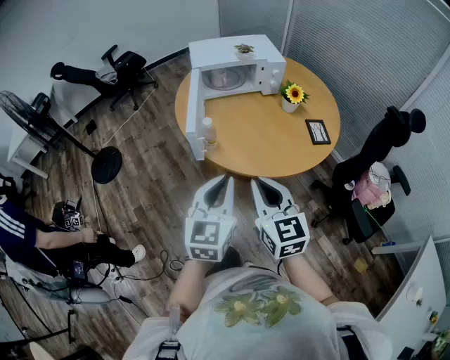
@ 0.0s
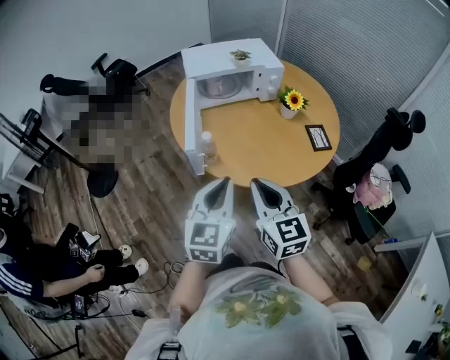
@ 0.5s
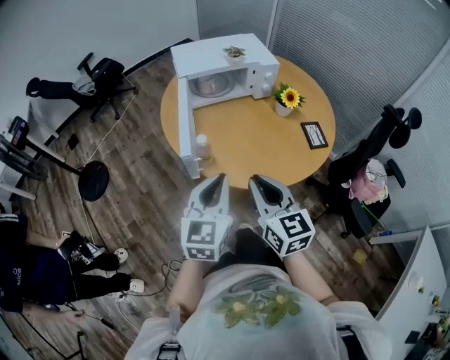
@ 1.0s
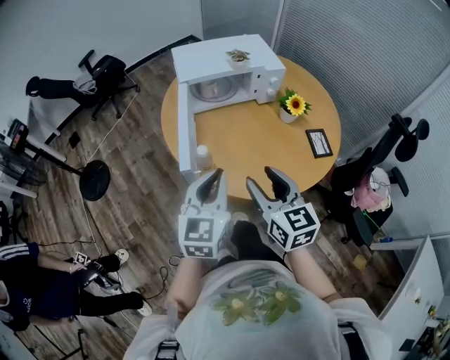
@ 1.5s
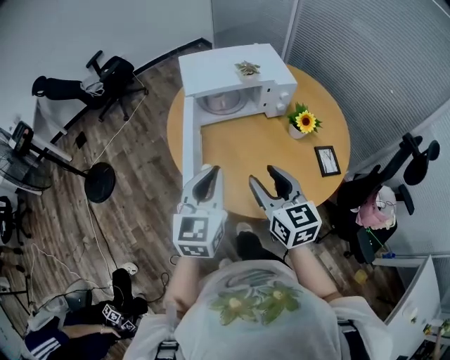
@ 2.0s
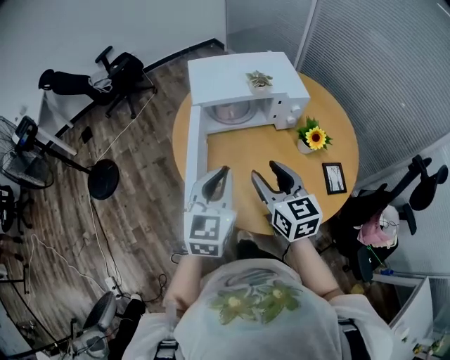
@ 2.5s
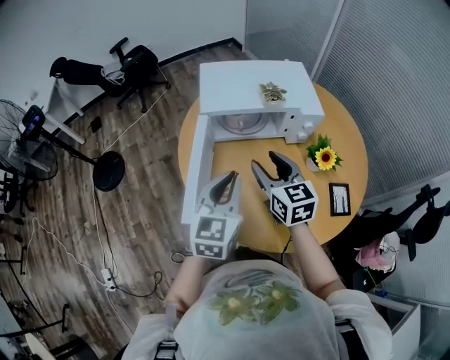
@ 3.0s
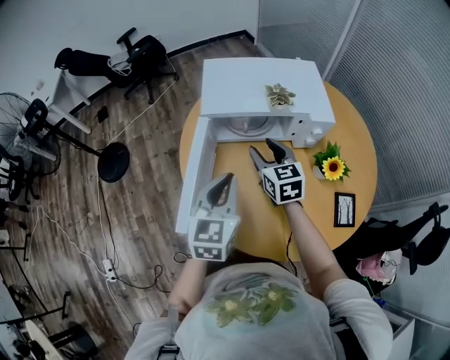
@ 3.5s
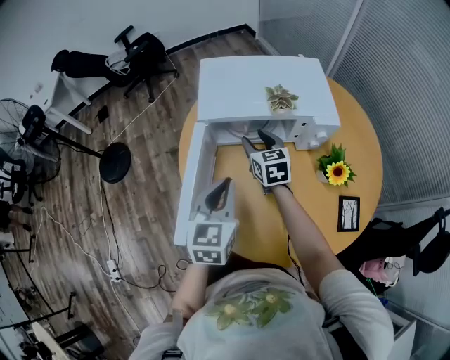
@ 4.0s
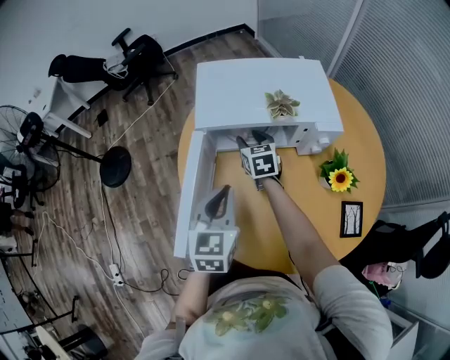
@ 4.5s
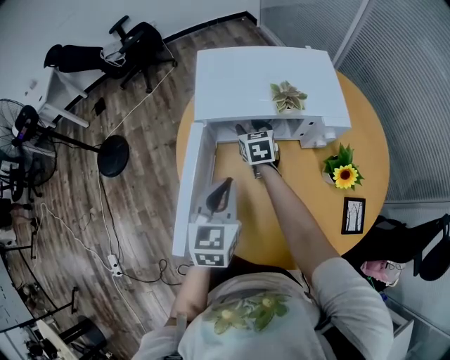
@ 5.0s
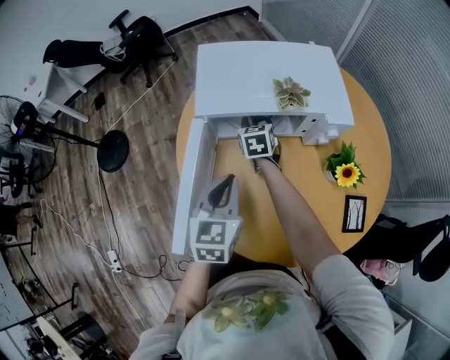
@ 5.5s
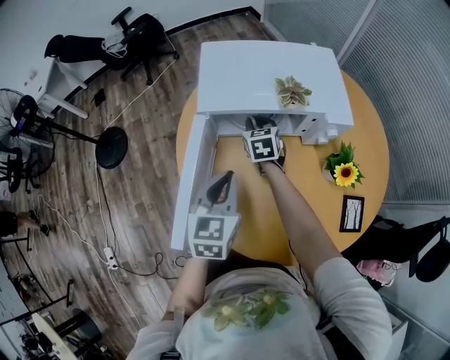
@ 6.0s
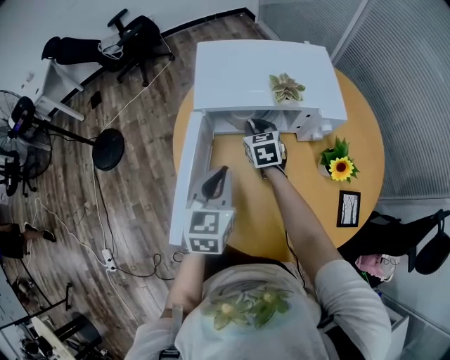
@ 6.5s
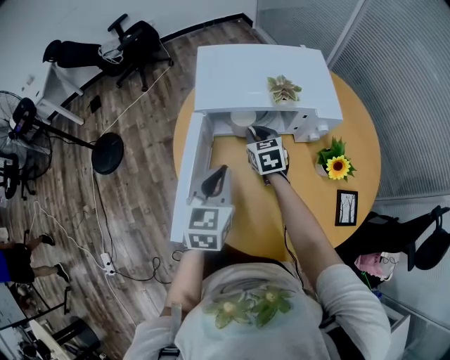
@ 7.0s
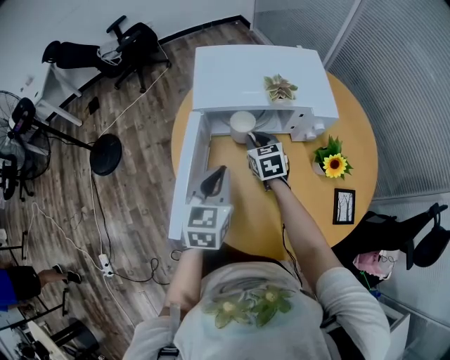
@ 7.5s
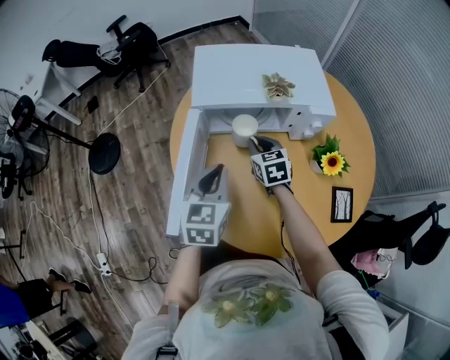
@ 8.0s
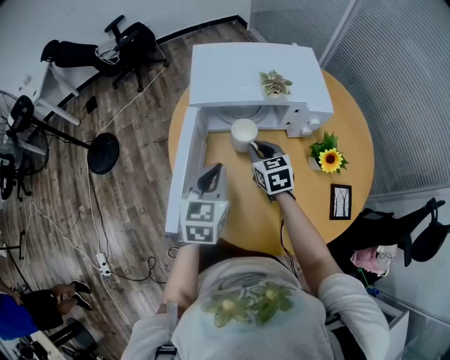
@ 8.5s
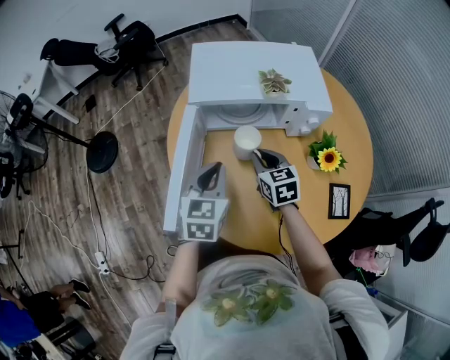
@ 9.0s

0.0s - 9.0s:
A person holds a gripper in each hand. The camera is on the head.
0.0s - 2.0s: Both grippers move forward, about 25 cm. The right gripper opens its fingers.
2.0s - 4.5s: The left gripper travels forward and downward by roughly 20 cm, and rotates some 20 degrees. Meanwhile the right gripper goes some 40 cm forward and downward.
4.5s - 7.0s: The right gripper closes.
7.0s - 9.0s: The right gripper travels backward by roughly 10 cm.

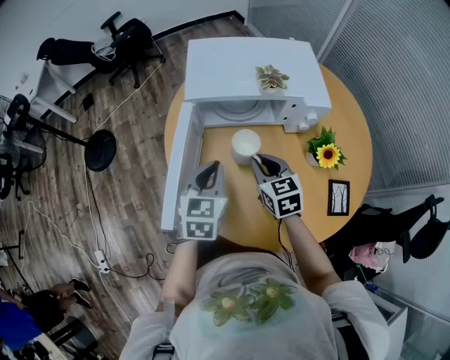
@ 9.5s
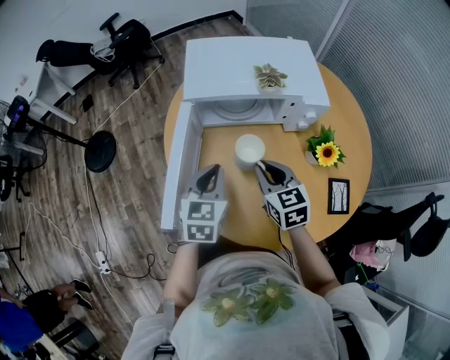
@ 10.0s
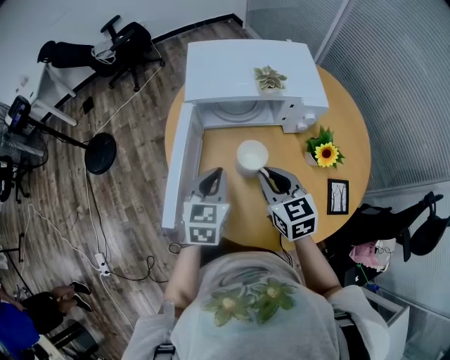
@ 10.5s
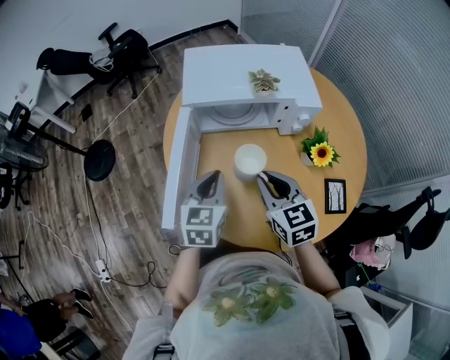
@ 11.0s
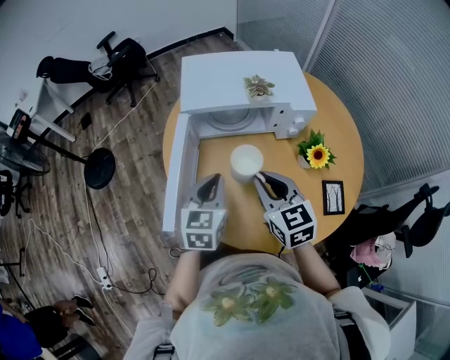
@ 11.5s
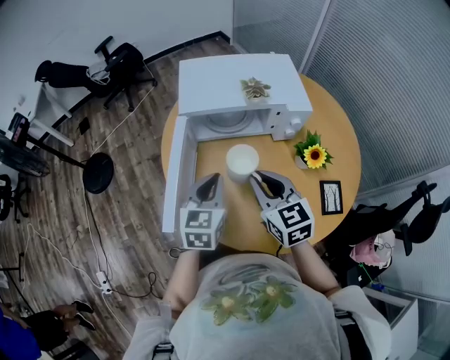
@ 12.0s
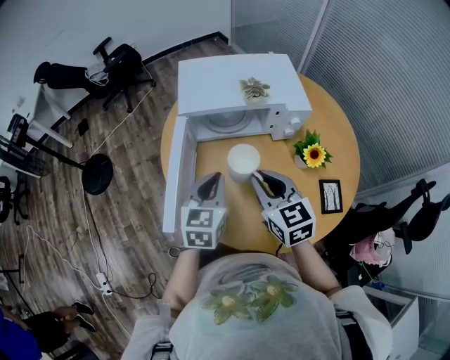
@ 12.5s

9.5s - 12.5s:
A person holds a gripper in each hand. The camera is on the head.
9.5s - 11.0s: The right gripper moves backward and upward, approximately 10 cm.
11.0s - 12.5s: The grippers move only a little.

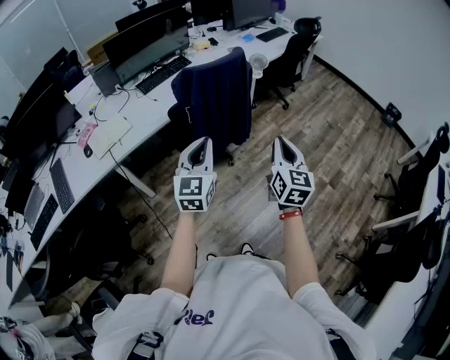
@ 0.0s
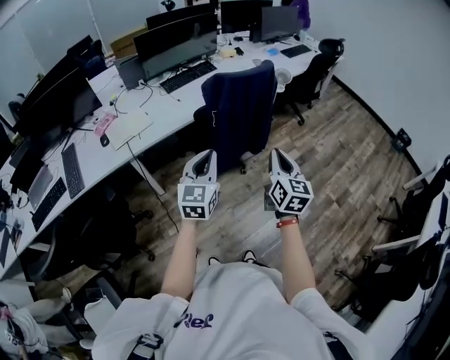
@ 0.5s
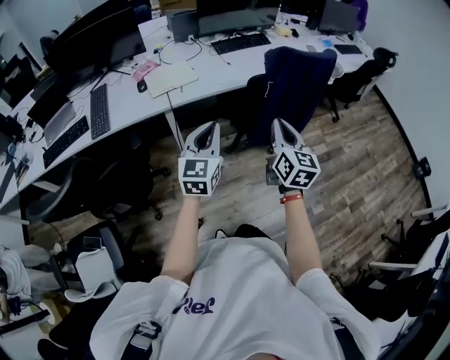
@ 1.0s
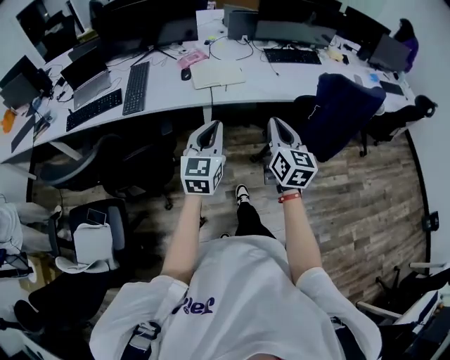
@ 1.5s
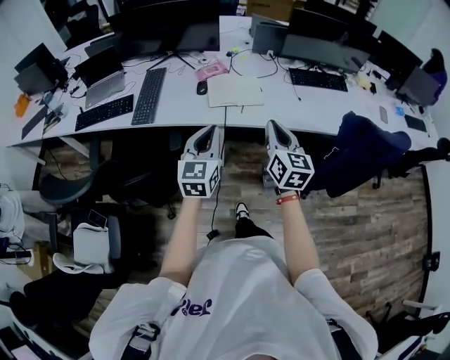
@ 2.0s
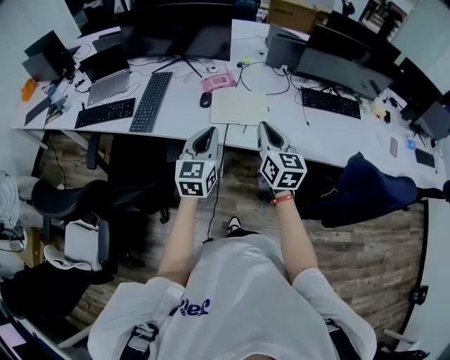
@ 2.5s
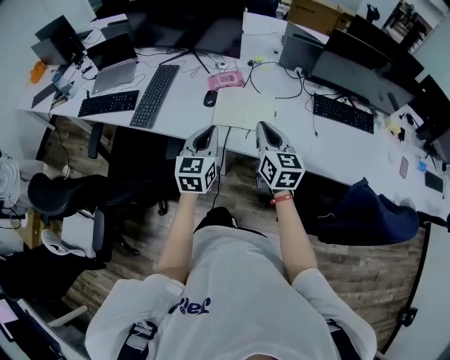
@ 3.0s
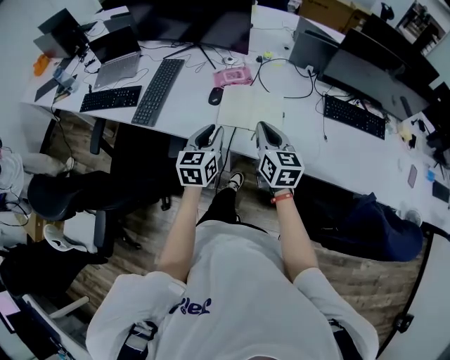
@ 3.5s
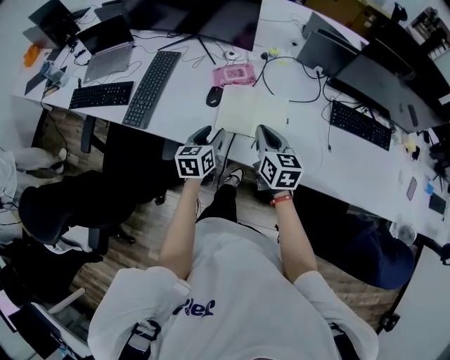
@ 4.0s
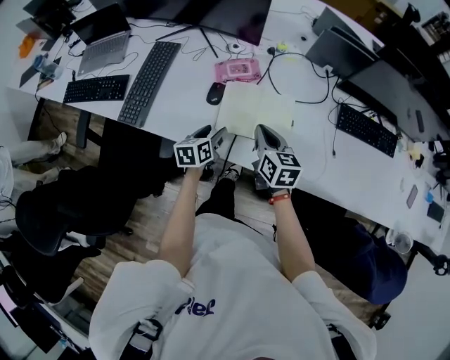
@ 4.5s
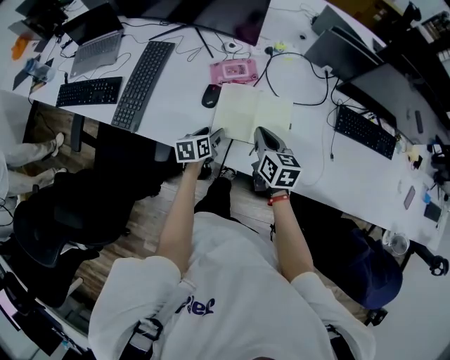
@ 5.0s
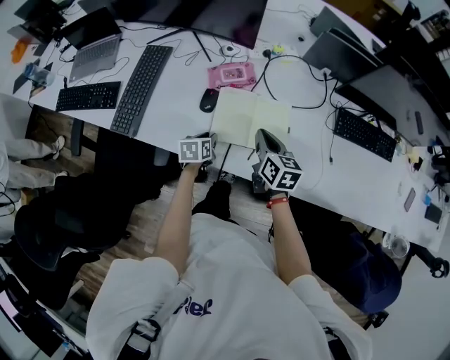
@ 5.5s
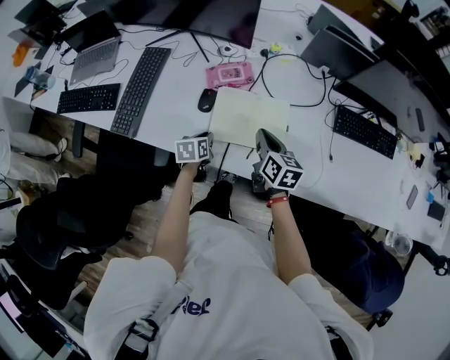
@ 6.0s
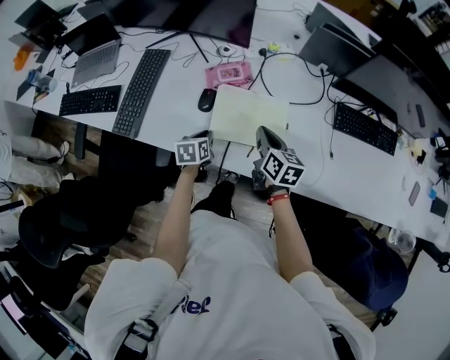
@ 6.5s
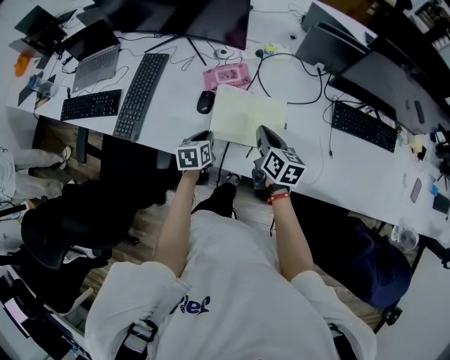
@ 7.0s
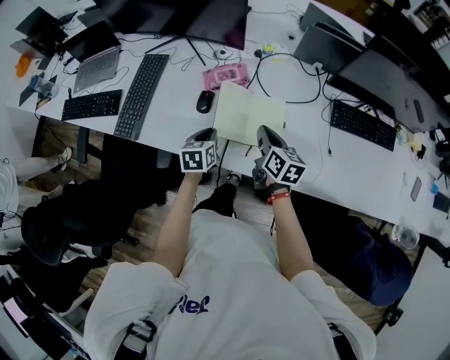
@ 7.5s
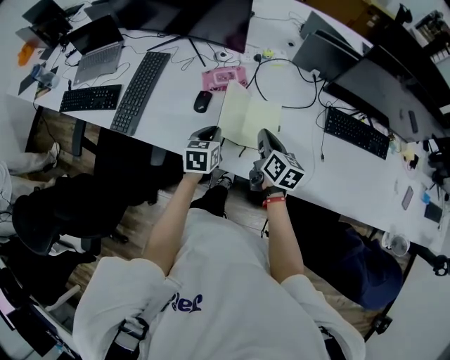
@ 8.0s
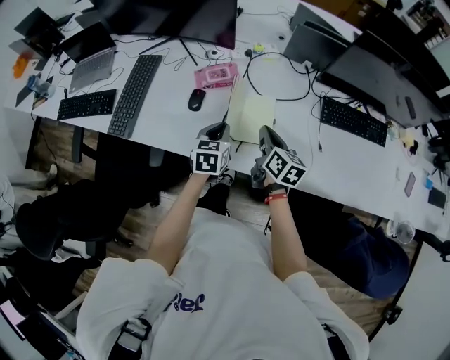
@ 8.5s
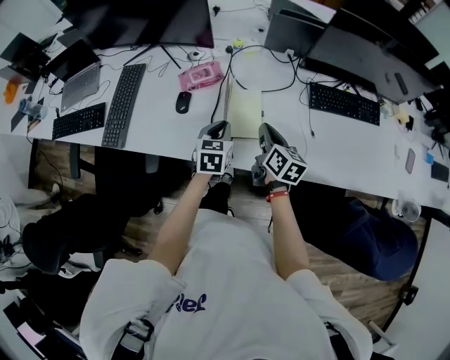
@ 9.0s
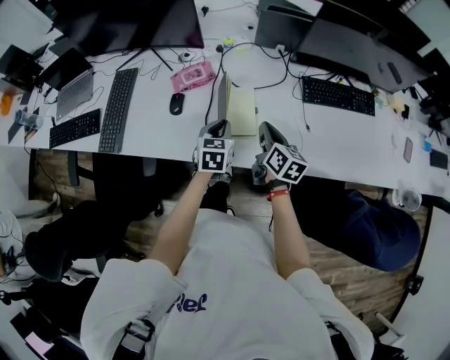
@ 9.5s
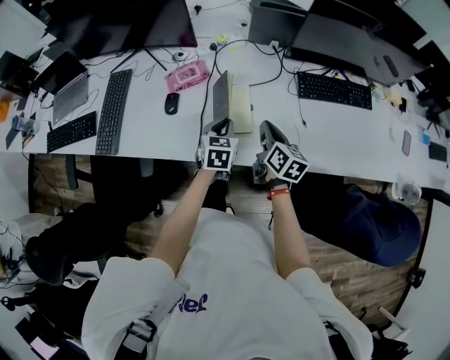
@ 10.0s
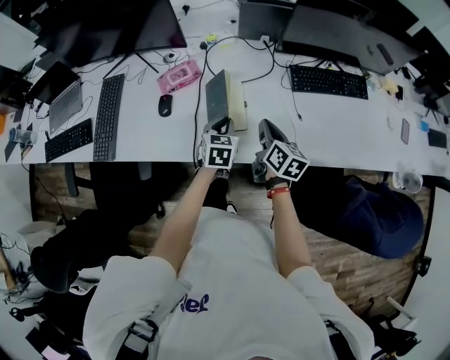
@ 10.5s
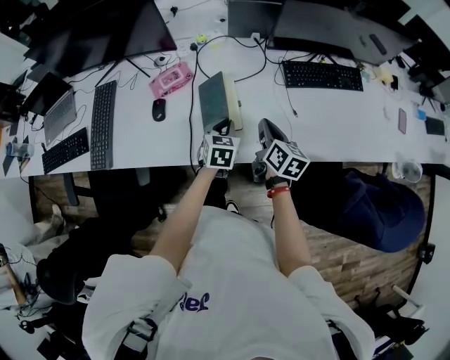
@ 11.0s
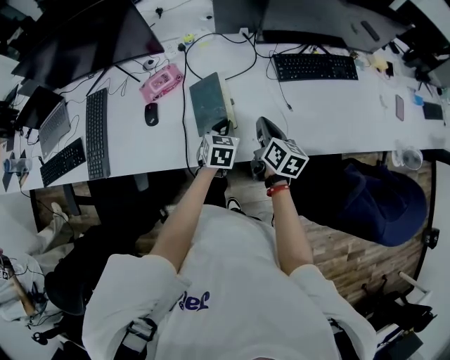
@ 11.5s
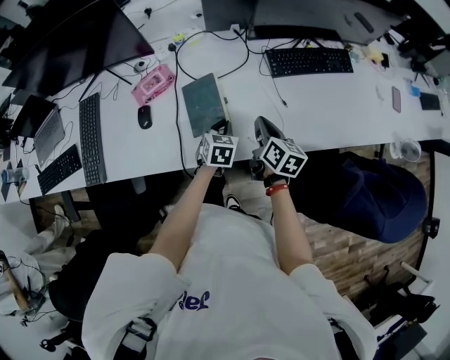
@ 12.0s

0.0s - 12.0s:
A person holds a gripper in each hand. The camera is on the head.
0.0s - 2.0s: Both grippers are carried some 50 cm. The left gripper turns by some 40 degrees. Meanwhile the right gripper turns by approximately 50 degrees.
2.0s - 4.0s: Both grippers move forward and downward, approximately 40 cm. The right gripper changes its angle by about 30 degrees; the left gripper turns by approximately 30 degrees, and opens up.
4.0s - 6.0s: The left gripper goes about 15 cm downward and forward, swivels approximately 20 degrees, and closes its fingers, while the right gripper goes about 10 cm forward and downward.
6.0s - 8.0s: The right gripper ends up approximately 5 cm from where it was; the left gripper is displaced upward and to the right by some 10 cm.
8.0s - 10.0s: The two grippers go roughly 15 cm to the right.
10.0s - 12.0s: The right gripper travels to the right by some 5 cm. The left gripper goes about 10 cm to the right and downward.

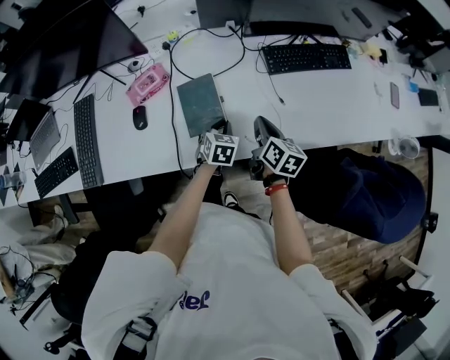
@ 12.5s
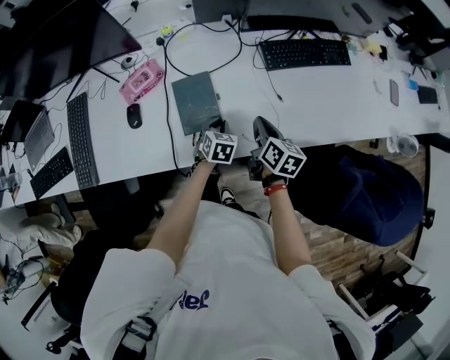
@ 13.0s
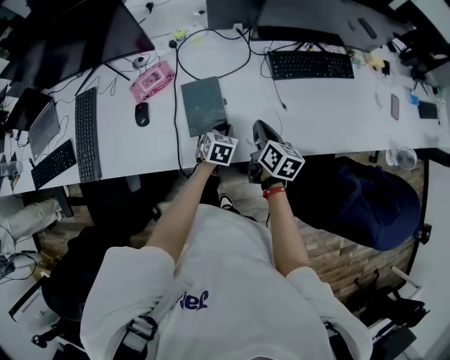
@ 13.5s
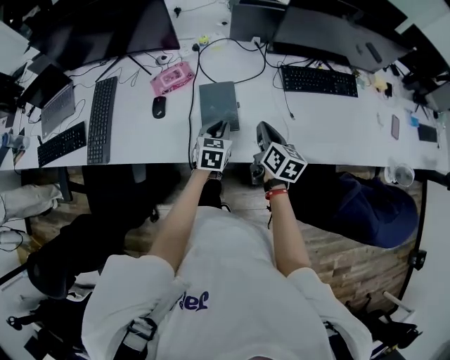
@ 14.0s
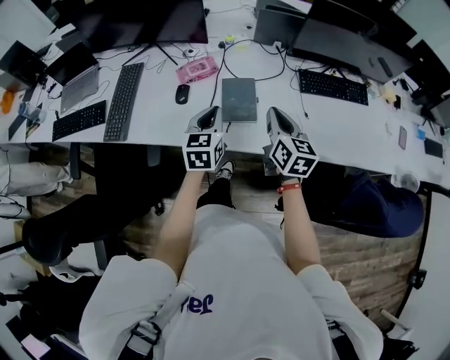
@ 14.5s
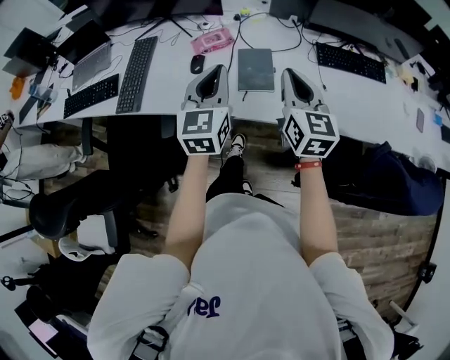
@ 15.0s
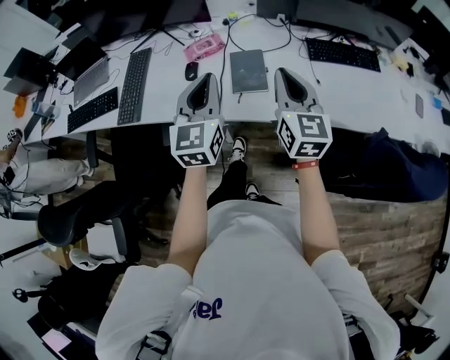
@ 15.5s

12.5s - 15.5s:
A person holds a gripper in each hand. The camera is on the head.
12.5s - 14.0s: The left gripper shifts some 10 cm upward and to the left; the right gripper changes place by about 5 cm.
14.0s - 15.5s: The right gripper moves upward and backward, roughly 20 cm, and rotates some 40 degrees. The left gripper moves upward, backward and to the left, some 30 cm, and angles its fingers upward, by approximately 30 degrees.
